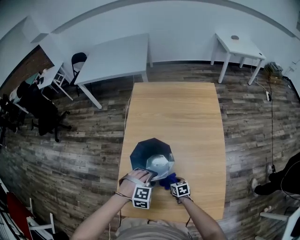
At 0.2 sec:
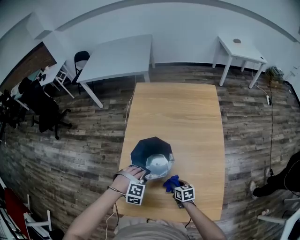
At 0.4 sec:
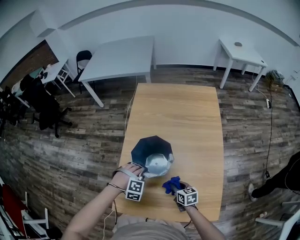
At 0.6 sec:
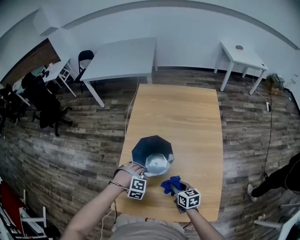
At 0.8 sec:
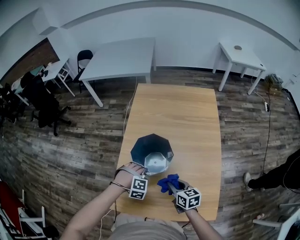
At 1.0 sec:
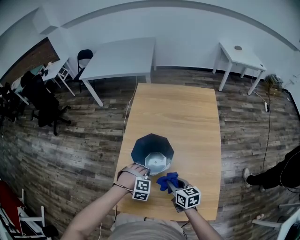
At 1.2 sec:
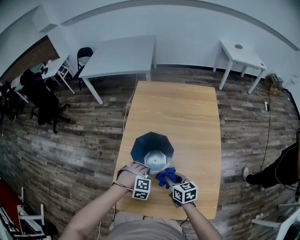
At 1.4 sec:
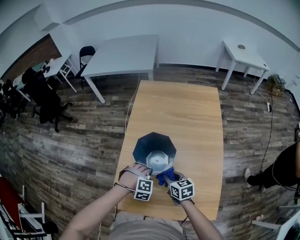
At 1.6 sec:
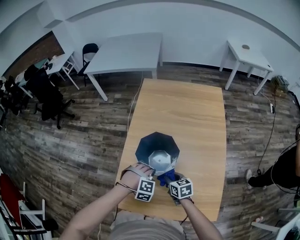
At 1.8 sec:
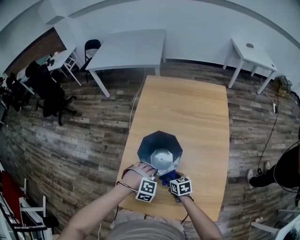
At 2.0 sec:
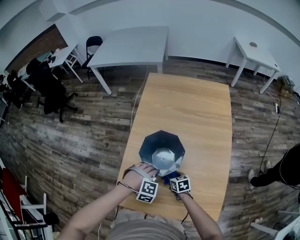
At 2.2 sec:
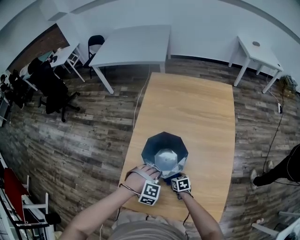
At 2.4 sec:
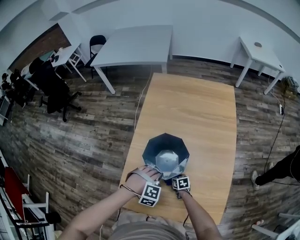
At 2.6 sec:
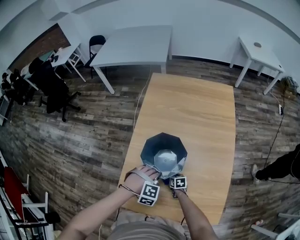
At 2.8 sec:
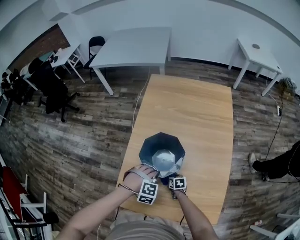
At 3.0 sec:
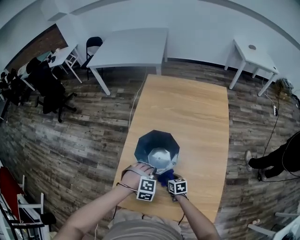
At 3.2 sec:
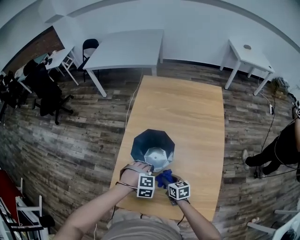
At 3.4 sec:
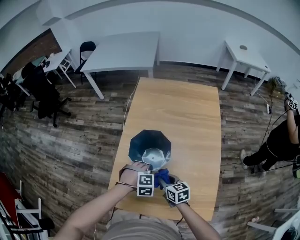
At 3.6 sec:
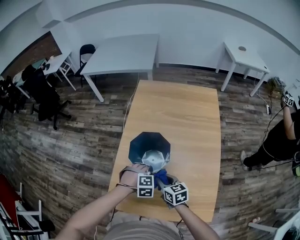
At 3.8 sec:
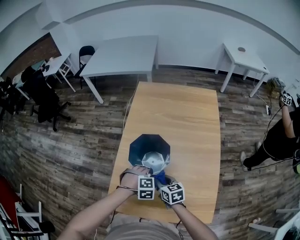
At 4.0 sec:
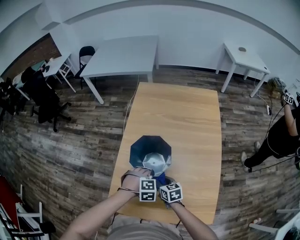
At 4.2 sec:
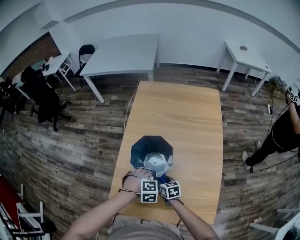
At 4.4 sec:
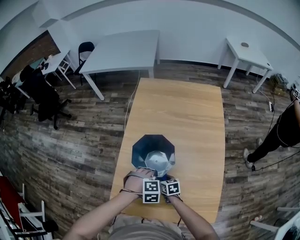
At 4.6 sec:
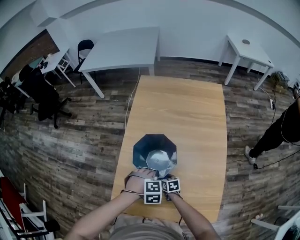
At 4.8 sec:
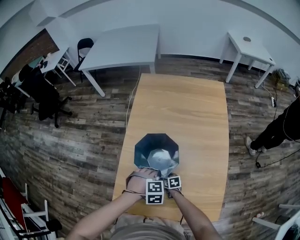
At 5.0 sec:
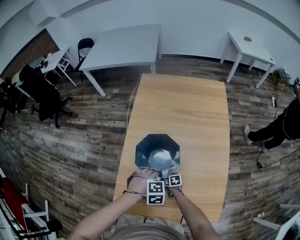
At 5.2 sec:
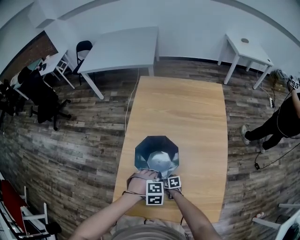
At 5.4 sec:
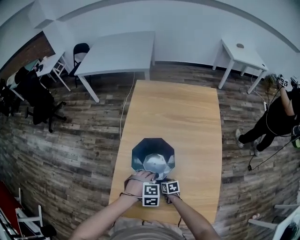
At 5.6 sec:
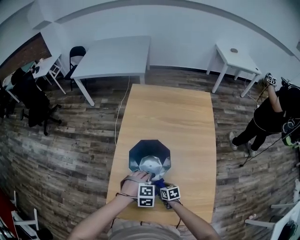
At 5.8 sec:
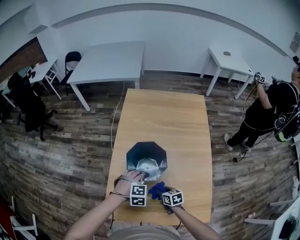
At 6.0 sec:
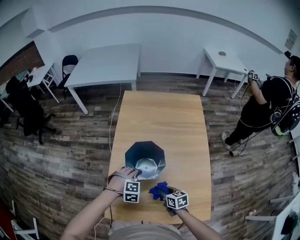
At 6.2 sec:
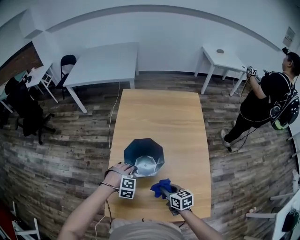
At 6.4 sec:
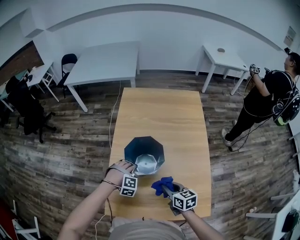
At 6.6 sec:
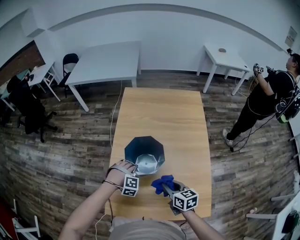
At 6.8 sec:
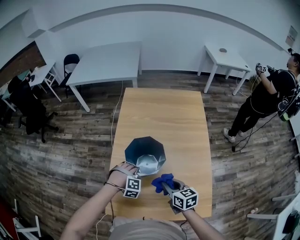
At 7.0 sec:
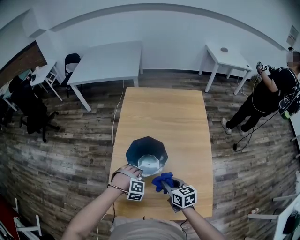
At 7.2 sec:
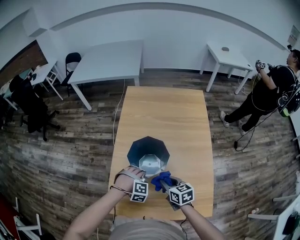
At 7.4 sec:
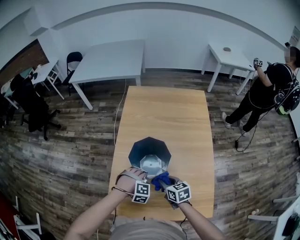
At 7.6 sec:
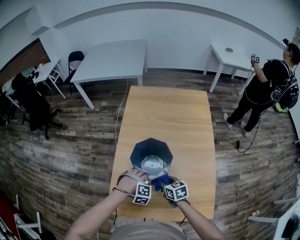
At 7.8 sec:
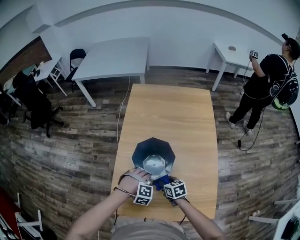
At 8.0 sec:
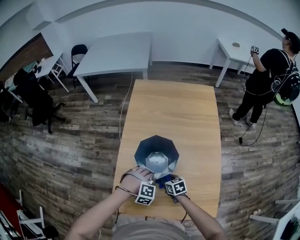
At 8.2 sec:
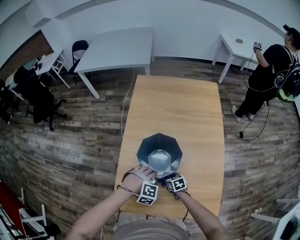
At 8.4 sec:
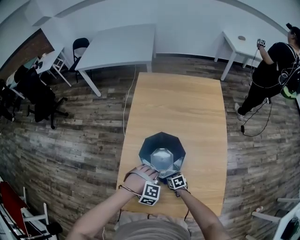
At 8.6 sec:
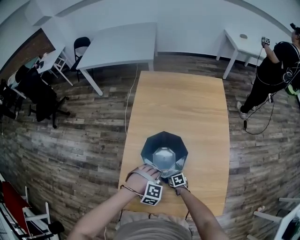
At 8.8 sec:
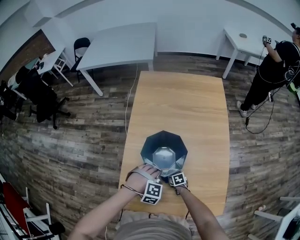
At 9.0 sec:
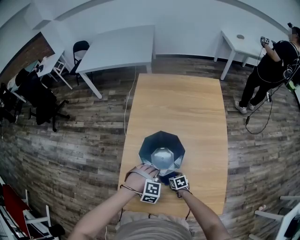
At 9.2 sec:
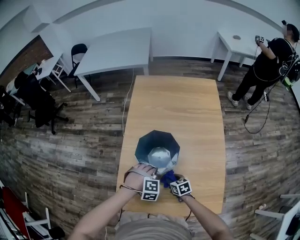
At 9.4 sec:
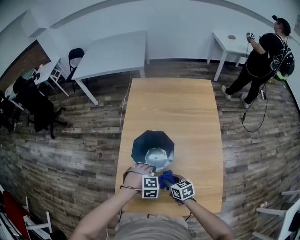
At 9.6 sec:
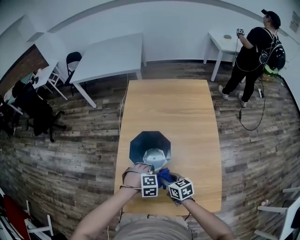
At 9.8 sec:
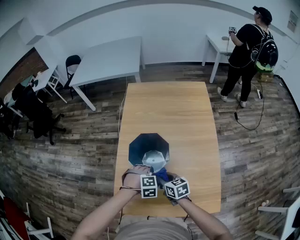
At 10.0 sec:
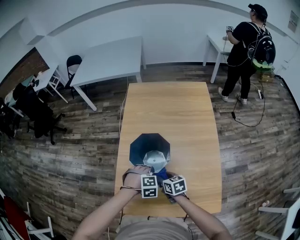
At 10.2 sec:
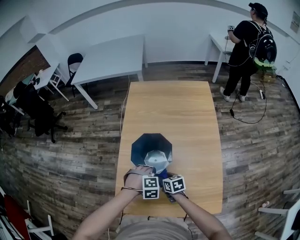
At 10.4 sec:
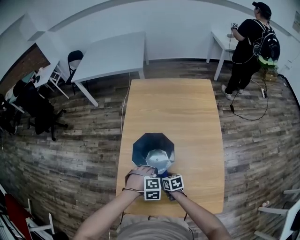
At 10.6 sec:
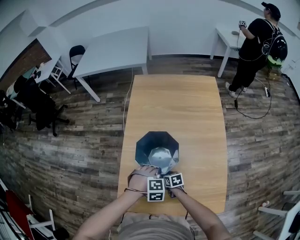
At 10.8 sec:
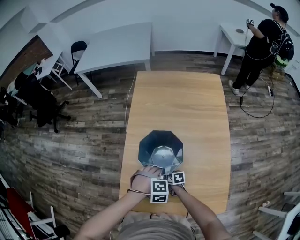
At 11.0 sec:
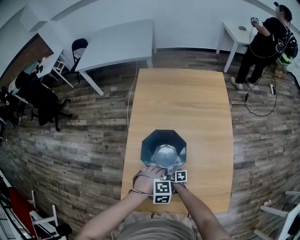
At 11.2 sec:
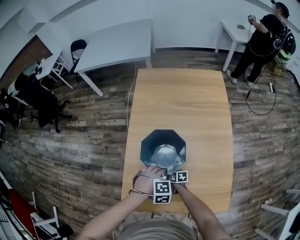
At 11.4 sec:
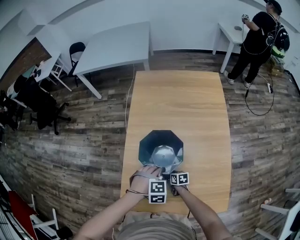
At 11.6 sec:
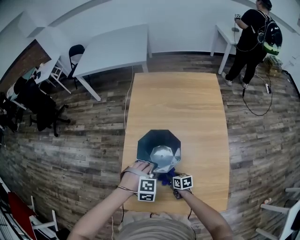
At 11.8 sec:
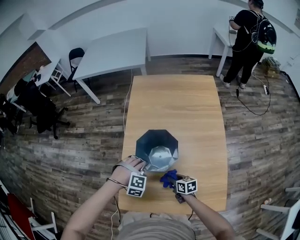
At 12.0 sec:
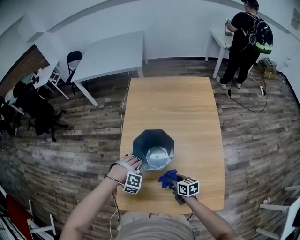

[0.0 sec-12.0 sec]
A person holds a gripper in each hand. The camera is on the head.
0.0 sec to 1.6 sec: The right gripper is displaced upward by about 15 cm.
1.6 sec to 3.0 sec: The right gripper travels downward by some 15 cm.
3.0 sec to 4.4 sec: The right gripper moves approximately 20 cm upward and comes back.
4.4 sec to 6.0 sec: The right gripper goes roughly 10 cm upward.
6.0 sec to 7.6 sec: The right gripper moves approximately 10 cm upward and comes back.
7.6 sec to 9.0 sec: The right gripper is displaced downward by some 20 cm.
9.0 sec to 10.4 sec: The right gripper shifts approximately 10 cm upward.
10.4 sec to 12.0 sec: The right gripper travels downward and back again, approximately 10 cm each way.

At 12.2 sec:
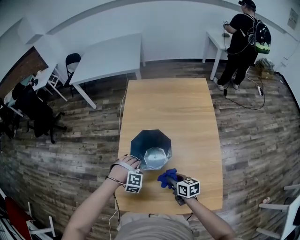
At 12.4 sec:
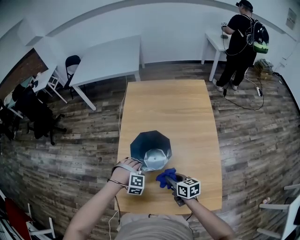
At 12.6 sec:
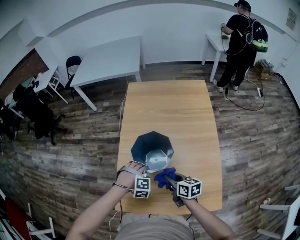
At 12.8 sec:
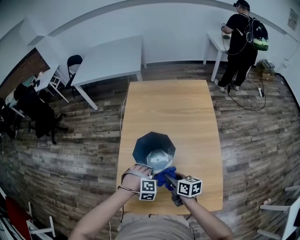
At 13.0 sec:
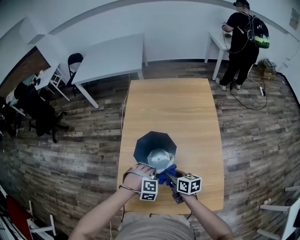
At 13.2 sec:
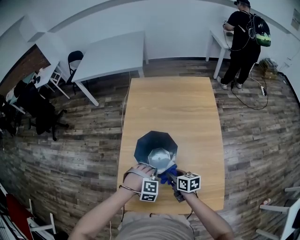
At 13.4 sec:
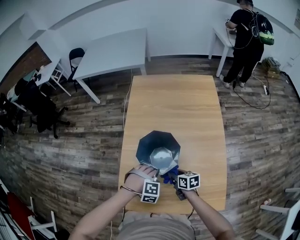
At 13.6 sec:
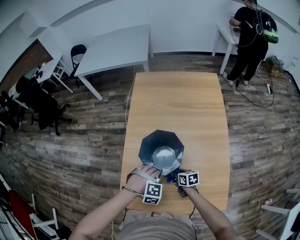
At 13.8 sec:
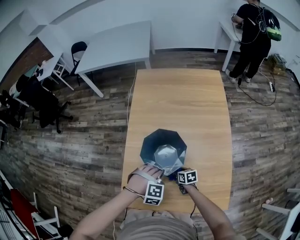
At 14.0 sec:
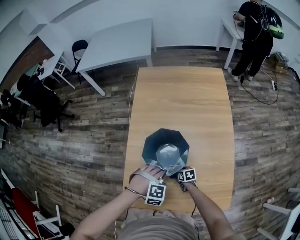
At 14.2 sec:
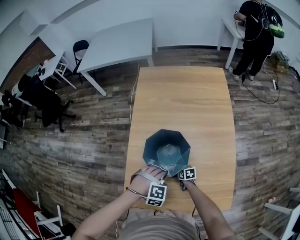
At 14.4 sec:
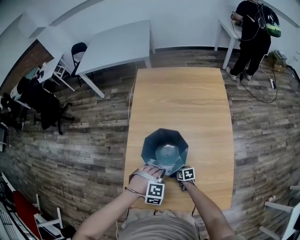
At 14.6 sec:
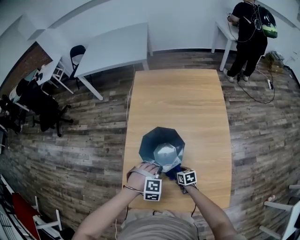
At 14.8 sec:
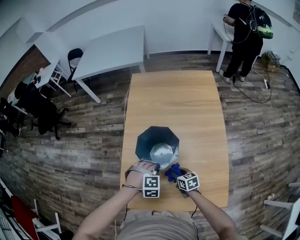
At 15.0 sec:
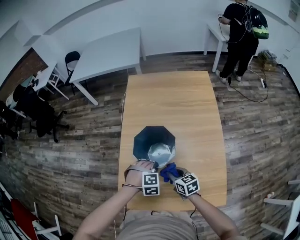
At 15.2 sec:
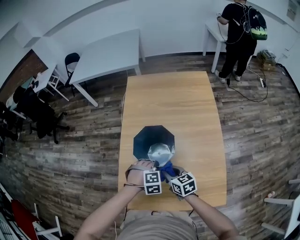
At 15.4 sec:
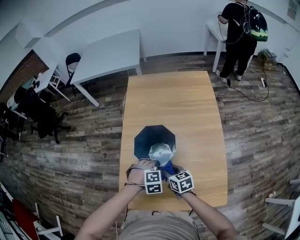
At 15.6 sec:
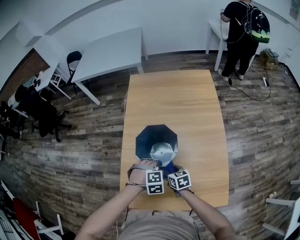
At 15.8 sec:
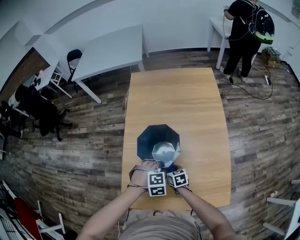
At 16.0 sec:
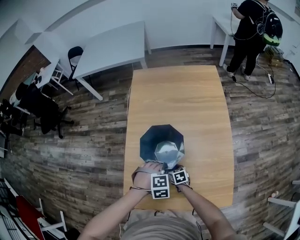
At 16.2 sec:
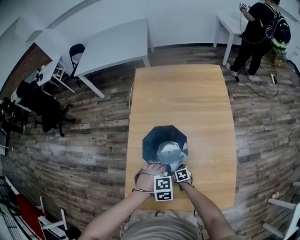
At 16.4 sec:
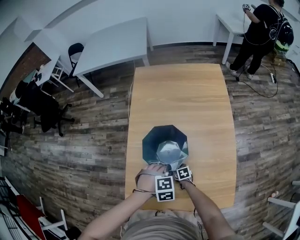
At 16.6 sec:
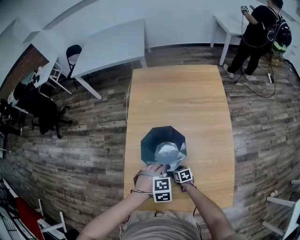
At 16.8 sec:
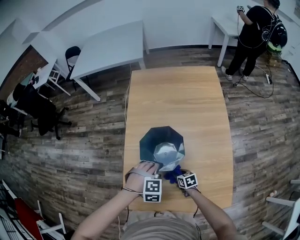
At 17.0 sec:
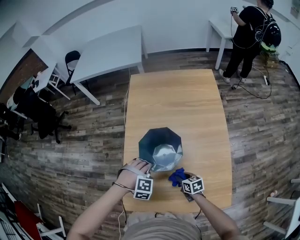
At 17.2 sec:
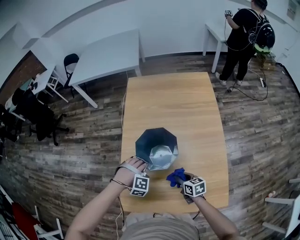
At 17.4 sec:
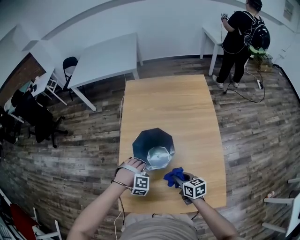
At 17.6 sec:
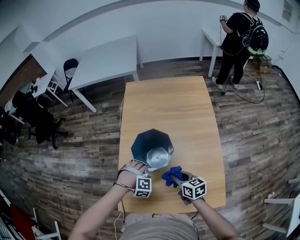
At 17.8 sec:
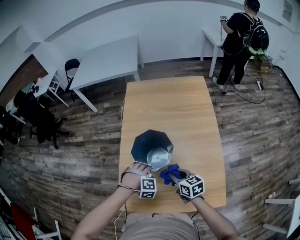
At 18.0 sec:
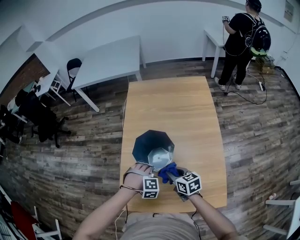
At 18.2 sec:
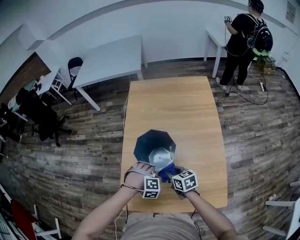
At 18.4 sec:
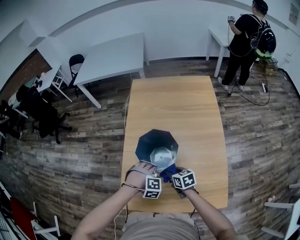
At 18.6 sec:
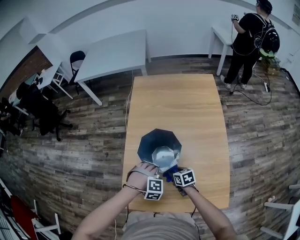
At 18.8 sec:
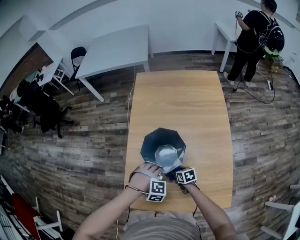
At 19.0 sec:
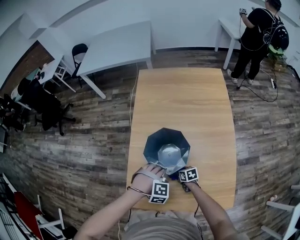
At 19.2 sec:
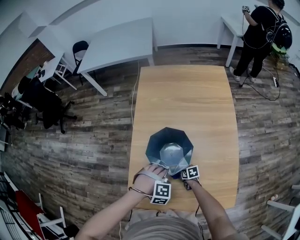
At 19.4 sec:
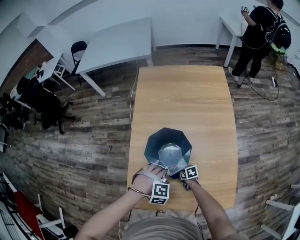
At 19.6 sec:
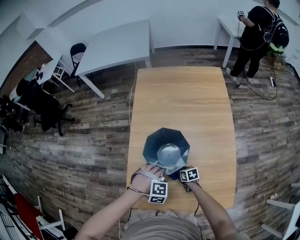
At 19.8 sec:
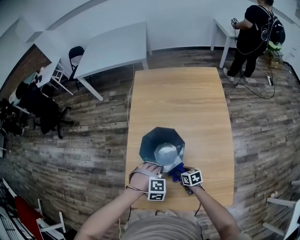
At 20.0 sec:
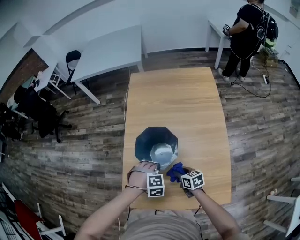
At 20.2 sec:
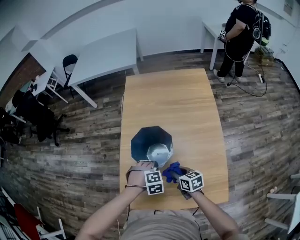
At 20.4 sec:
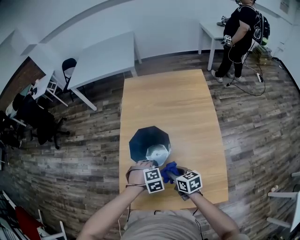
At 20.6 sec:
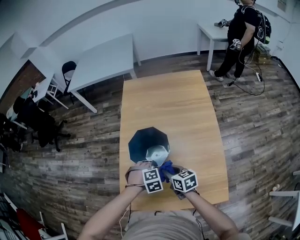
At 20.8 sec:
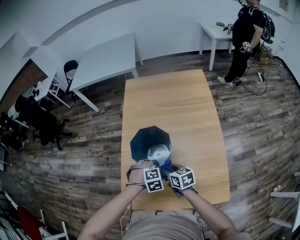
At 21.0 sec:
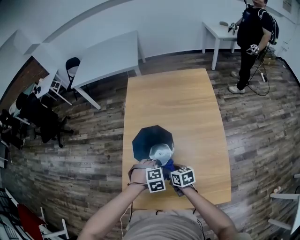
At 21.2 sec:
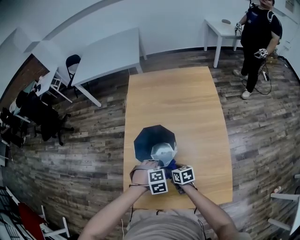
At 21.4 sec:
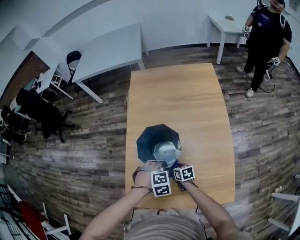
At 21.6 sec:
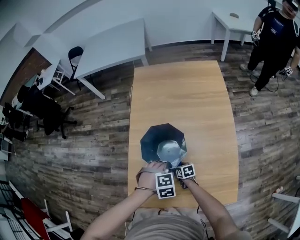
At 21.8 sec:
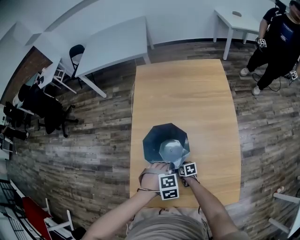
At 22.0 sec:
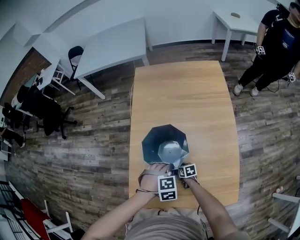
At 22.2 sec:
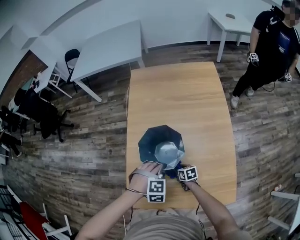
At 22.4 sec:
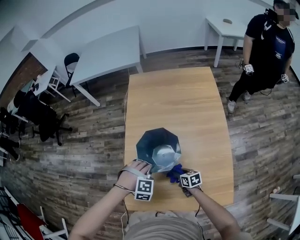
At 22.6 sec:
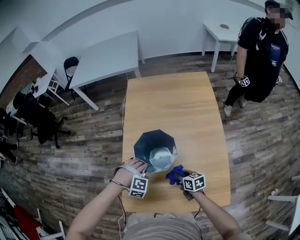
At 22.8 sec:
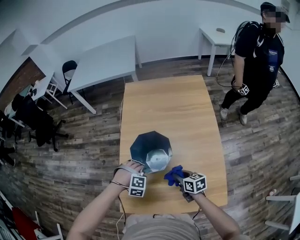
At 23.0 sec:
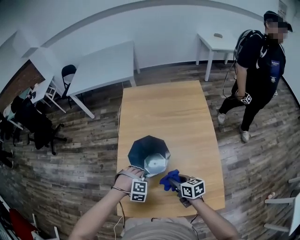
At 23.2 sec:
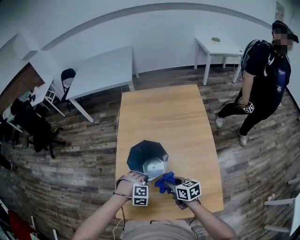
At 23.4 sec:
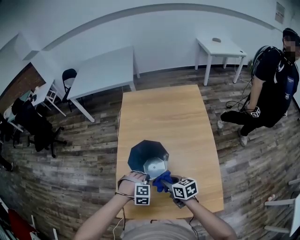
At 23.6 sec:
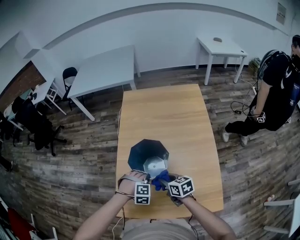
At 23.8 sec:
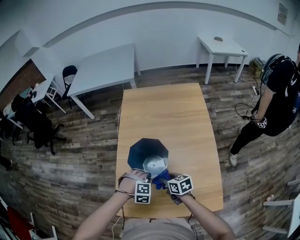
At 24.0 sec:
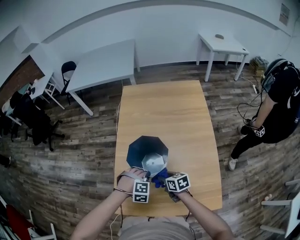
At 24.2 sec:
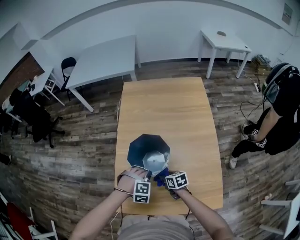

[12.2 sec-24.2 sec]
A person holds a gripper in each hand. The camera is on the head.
12.2 sec to 13.8 sec: The right gripper shifts about 15 cm downward.
13.8 sec to 15.2 sec: The right gripper travels upward by roughly 20 cm, and rotates about 20 degrees.
15.2 sec to 16.6 sec: The right gripper moves downward, approximately 25 cm, and swivels some 20 degrees.
16.6 sec to 18.2 sec: The right gripper is displaced upward by some 20 cm.
18.2 sec to 19.8 sec: The right gripper travels downward by approximately 15 cm.
19.8 sec to 21.2 sec: The right gripper is displaced upward by approximately 5 cm.
21.2 sec to 22.6 sec: The right gripper travels downward and back again, about 15 cm each way.
22.6 sec to 24.2 sec: The right gripper goes upward and returns, some 10 cm each way.
